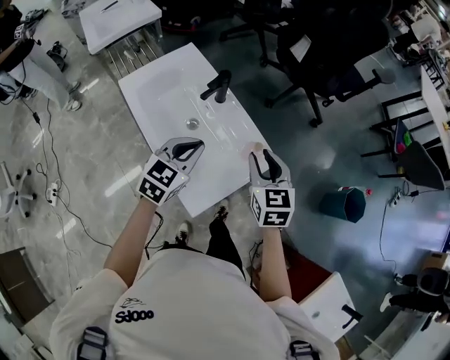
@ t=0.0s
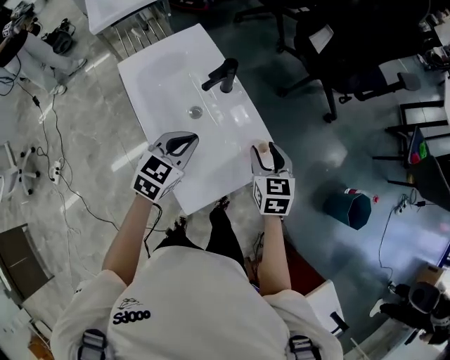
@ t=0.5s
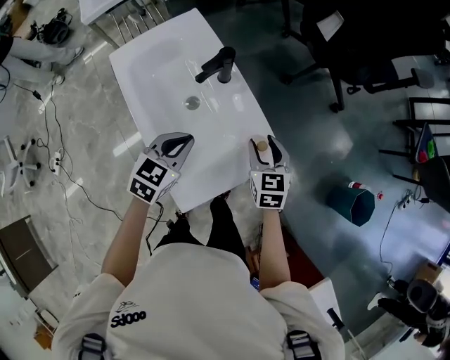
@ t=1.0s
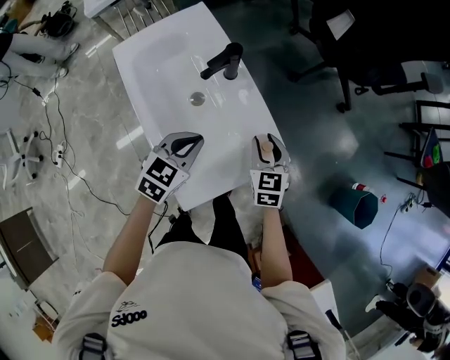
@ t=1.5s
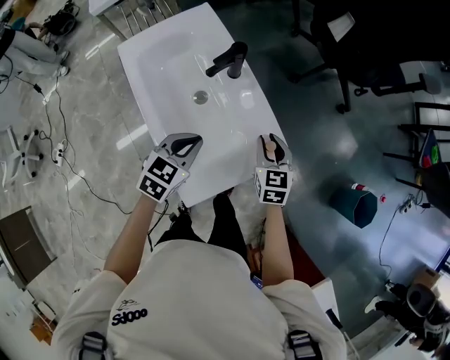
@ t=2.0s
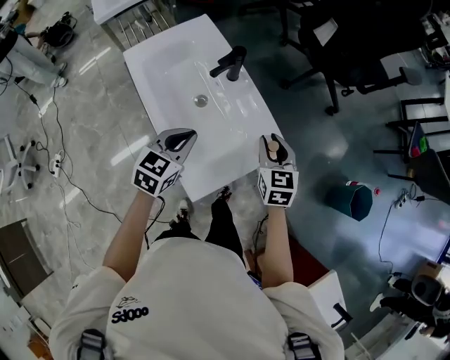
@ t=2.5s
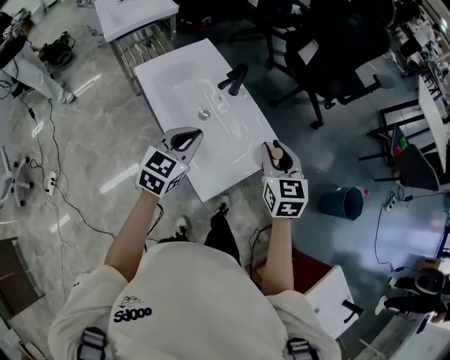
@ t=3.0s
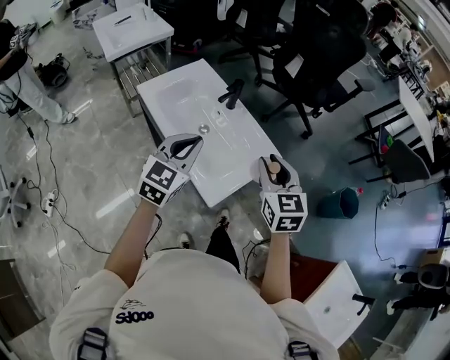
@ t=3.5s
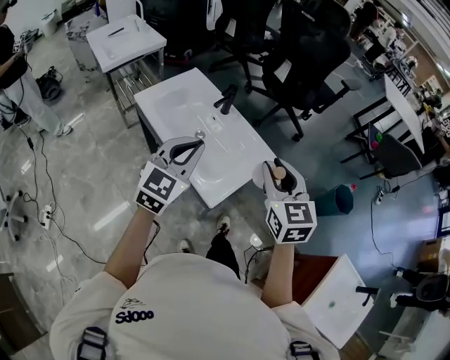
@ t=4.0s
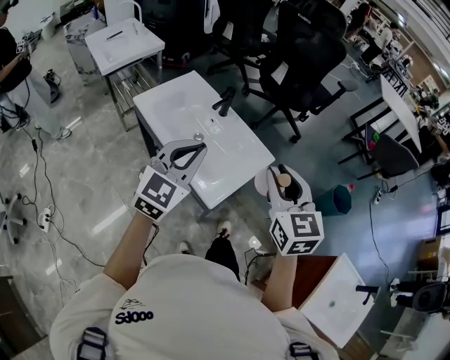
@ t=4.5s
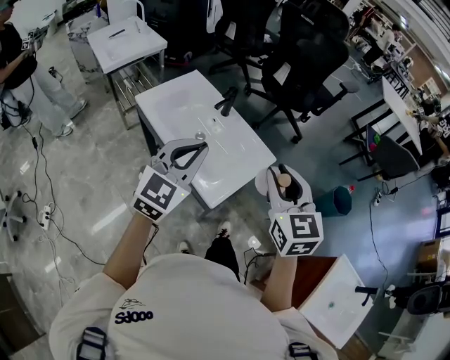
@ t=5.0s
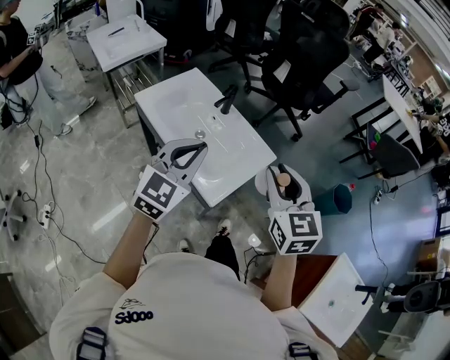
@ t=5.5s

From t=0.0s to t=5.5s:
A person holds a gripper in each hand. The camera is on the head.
From t=0.0s to t=2.0s: The left gripper moves downward, roughly 10 cm; the right gripper moves downward and forward, approximately 15 cm.
From t=2.0s to t=3.5s: Both grippers travel together upward and backward, about 25 cm. The left gripper turns by roughly 30 degrees.
From t=3.5s to t=5.5s: The two grippers go about 10 cm upward and backward.

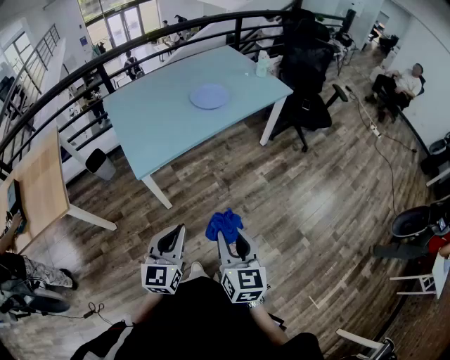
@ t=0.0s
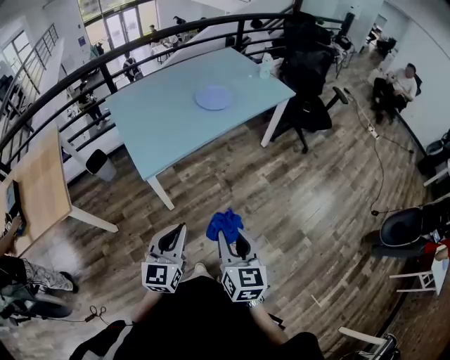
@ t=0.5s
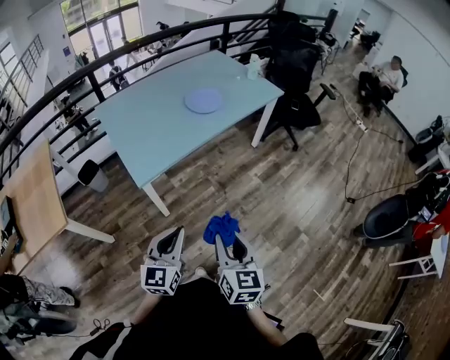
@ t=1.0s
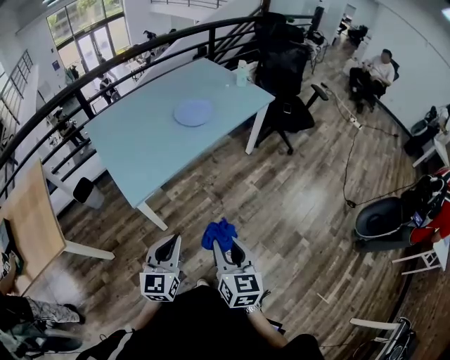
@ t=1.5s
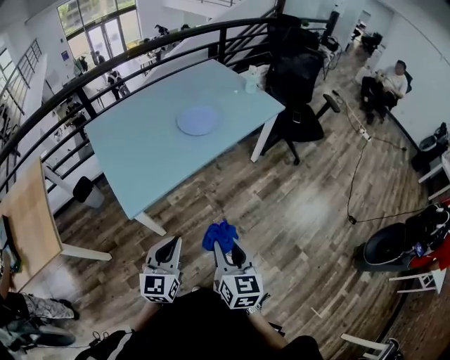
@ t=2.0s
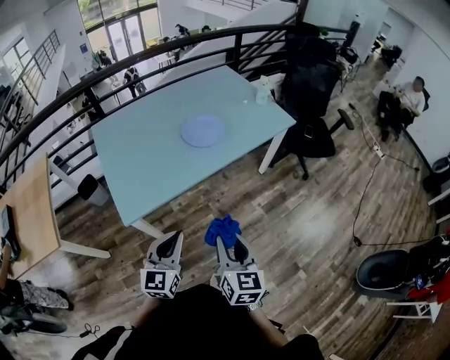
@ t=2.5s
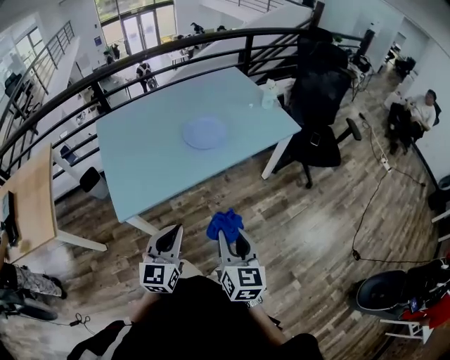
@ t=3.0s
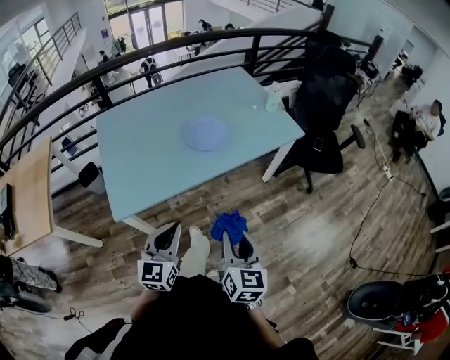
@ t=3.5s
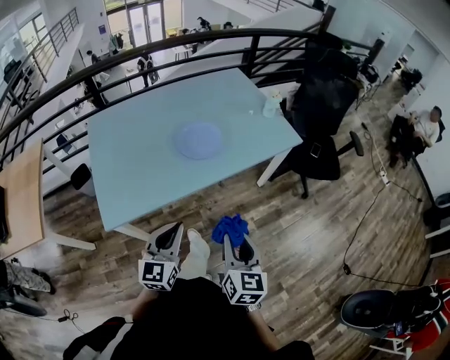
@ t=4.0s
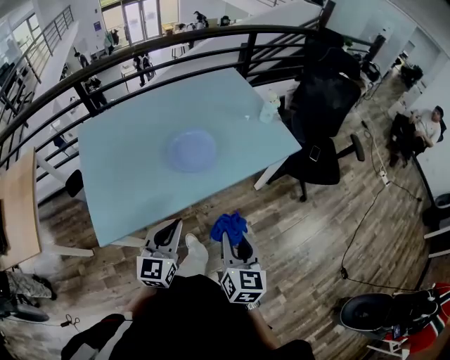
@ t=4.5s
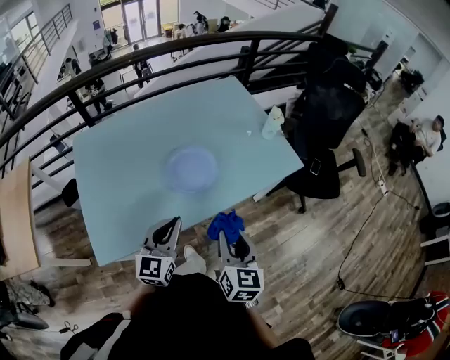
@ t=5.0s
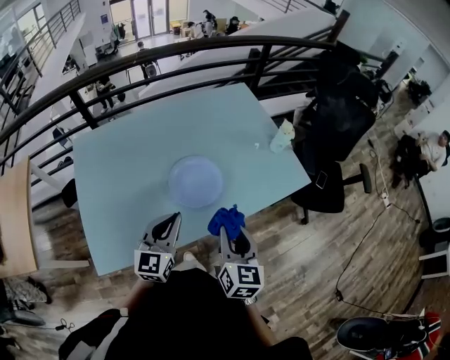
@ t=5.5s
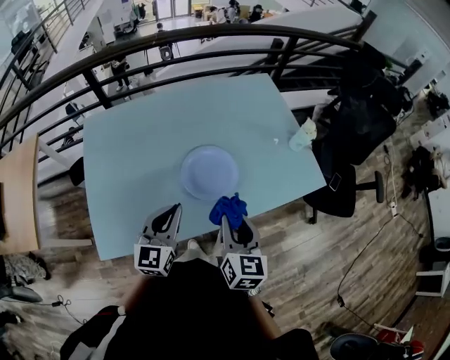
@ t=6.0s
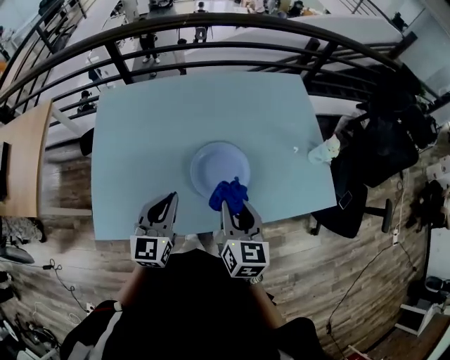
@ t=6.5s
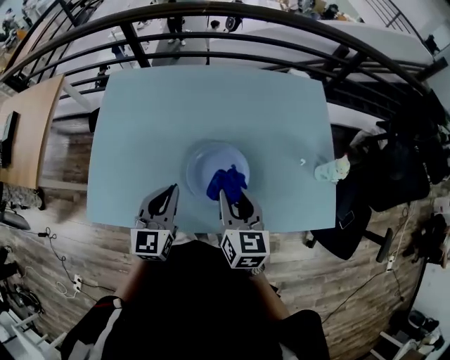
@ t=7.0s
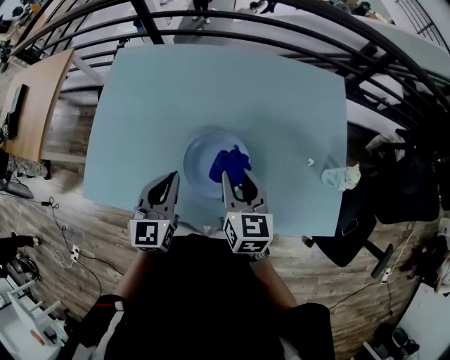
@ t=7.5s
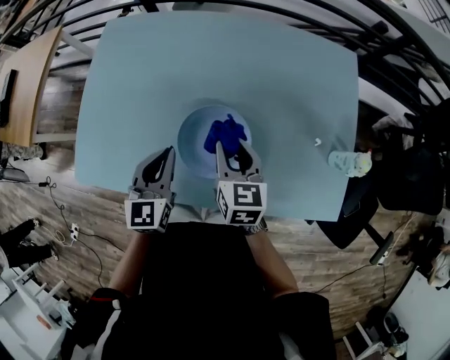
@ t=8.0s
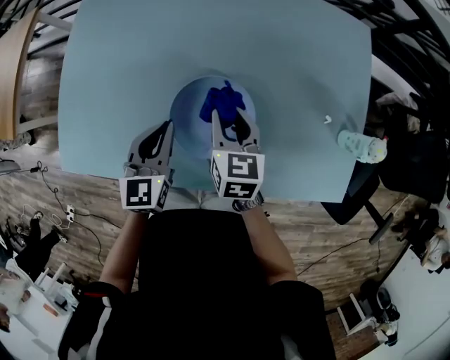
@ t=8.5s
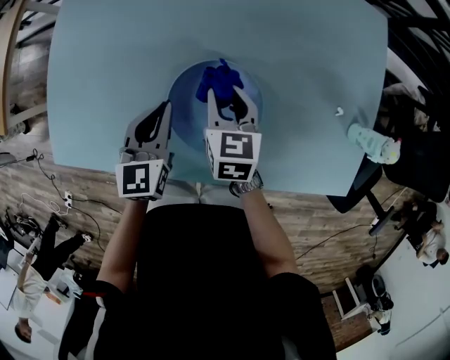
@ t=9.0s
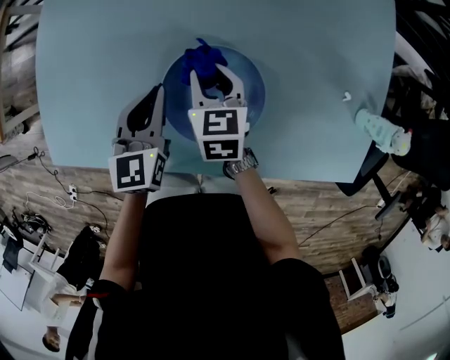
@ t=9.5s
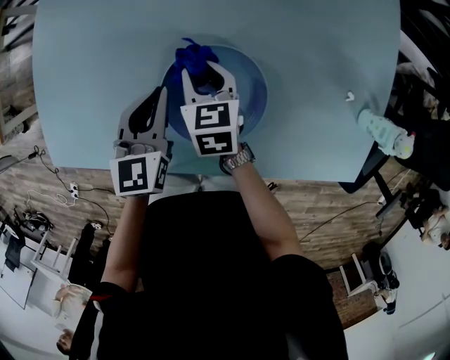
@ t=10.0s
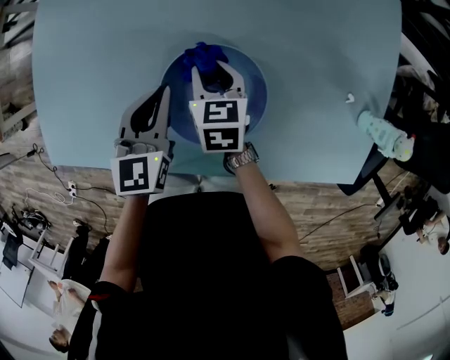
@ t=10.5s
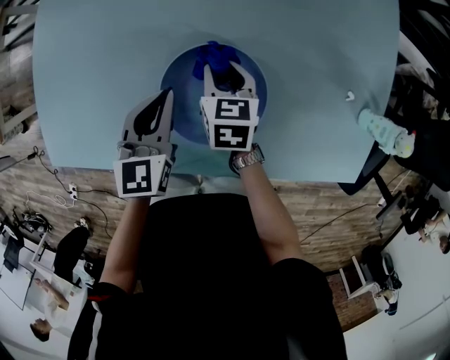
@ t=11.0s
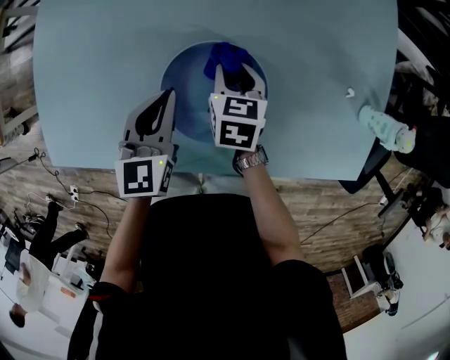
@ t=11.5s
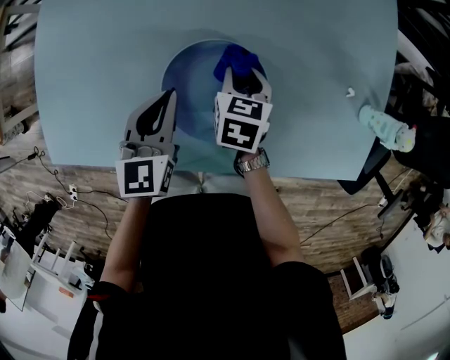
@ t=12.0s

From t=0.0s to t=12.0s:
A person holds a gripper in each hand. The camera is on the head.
From t=0.0s to t=2.0s: Both grippers move forward, some 15 cm.
From t=2.0s to t=4.0s: Both grippers travel together forward and to the right, some 25 cm.
From t=4.0s to t=6.0s: The grippers both shift forward by about 30 cm.
From t=6.0s to t=8.0s: The left gripper changes place by about 15 cm, and rotates approximately 30 degrees, while the right gripper moves some 25 cm, and turns by about 30 degrees.
From t=8.0s to t=10.0s: The right gripper moves downward, forward and to the left, approximately 20 cm; the left gripper shifts roughly 15 cm downward and forward.
From t=10.0s to t=12.0s: The right gripper is displaced to the right by some 10 cm, and changes its angle by roughly 20 degrees.

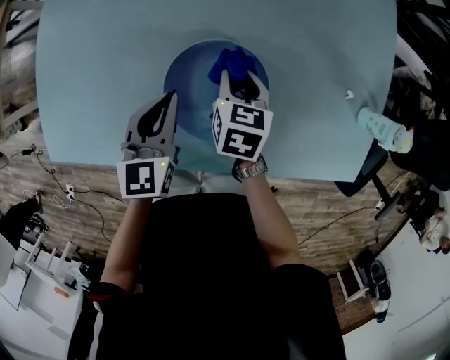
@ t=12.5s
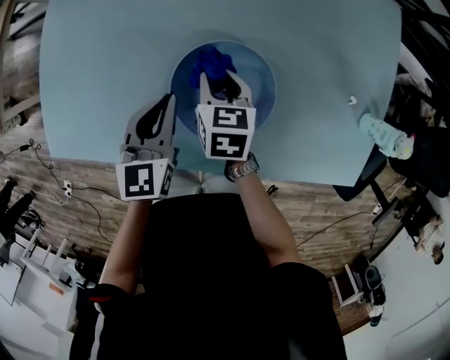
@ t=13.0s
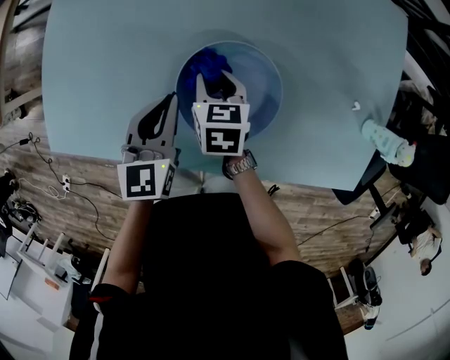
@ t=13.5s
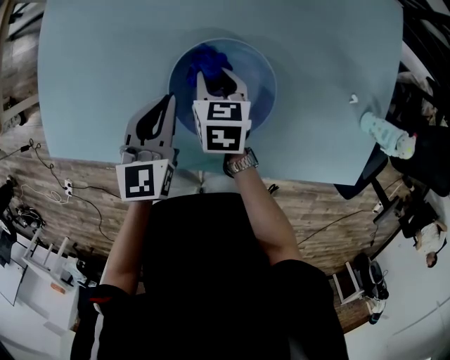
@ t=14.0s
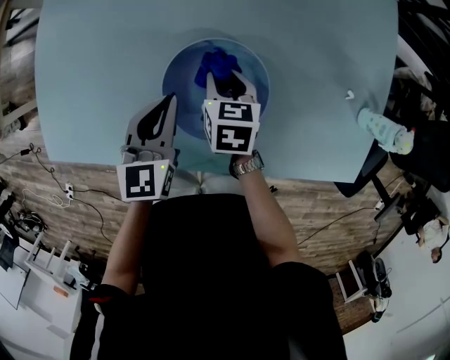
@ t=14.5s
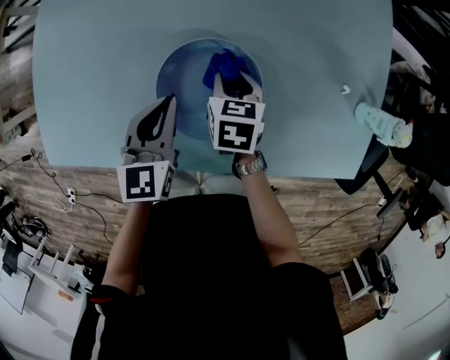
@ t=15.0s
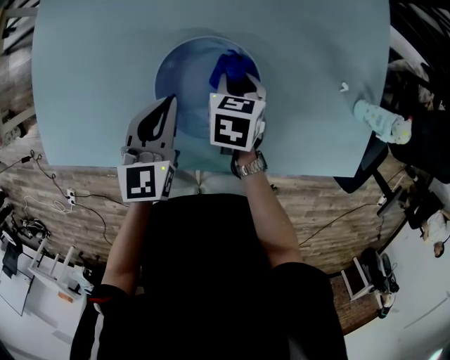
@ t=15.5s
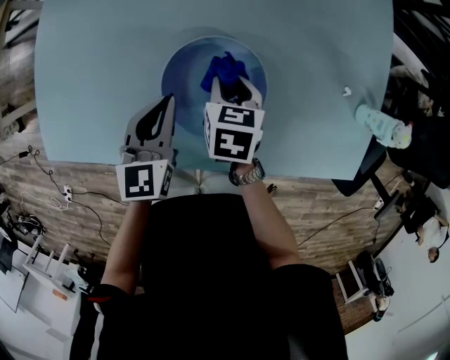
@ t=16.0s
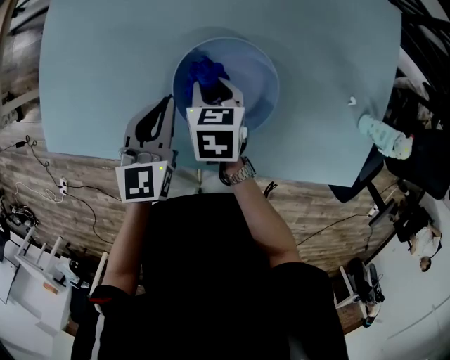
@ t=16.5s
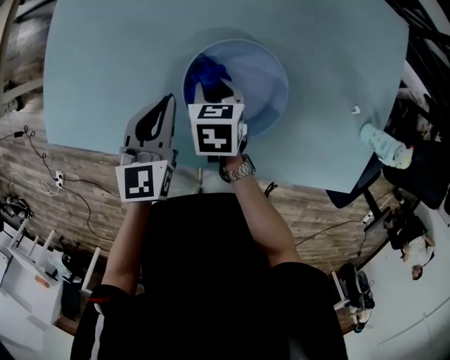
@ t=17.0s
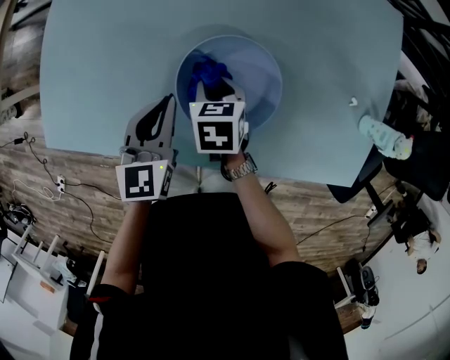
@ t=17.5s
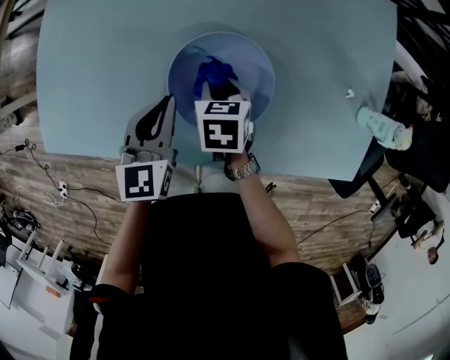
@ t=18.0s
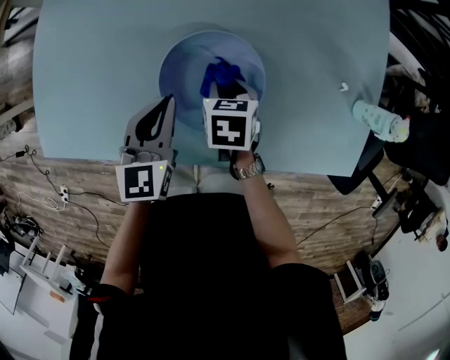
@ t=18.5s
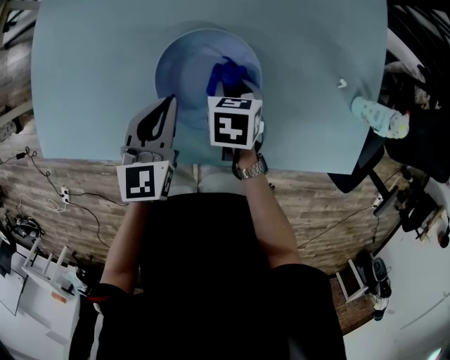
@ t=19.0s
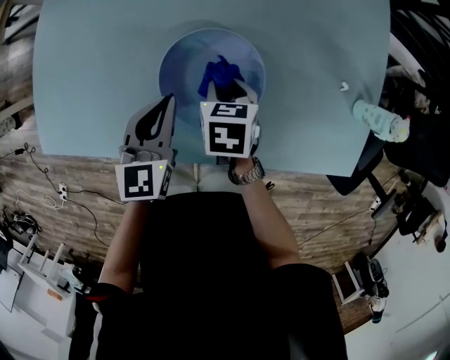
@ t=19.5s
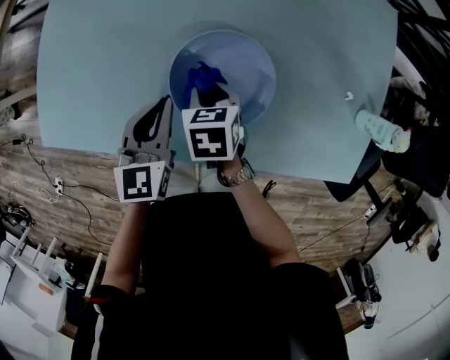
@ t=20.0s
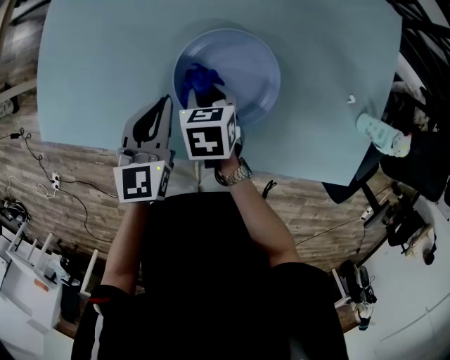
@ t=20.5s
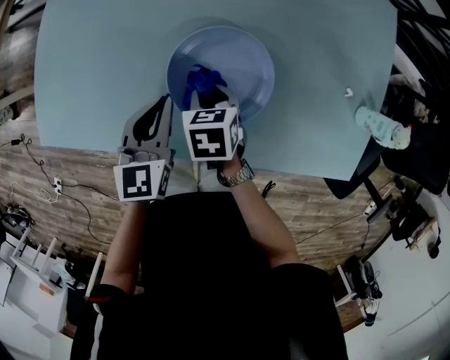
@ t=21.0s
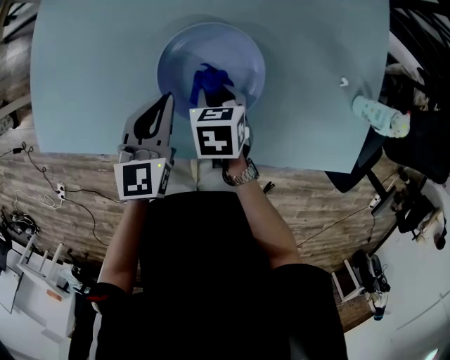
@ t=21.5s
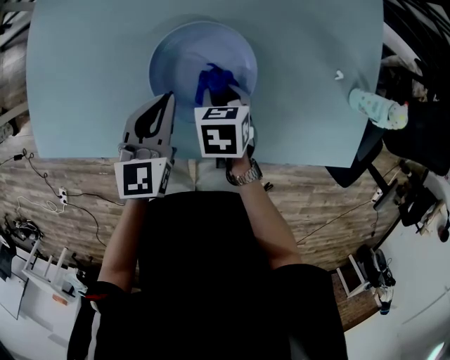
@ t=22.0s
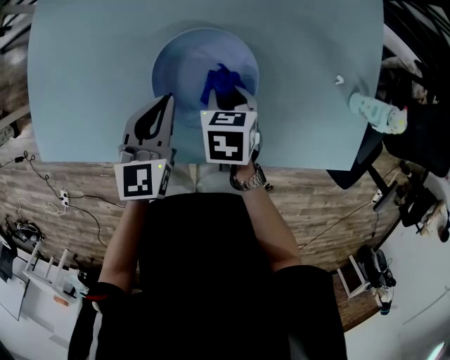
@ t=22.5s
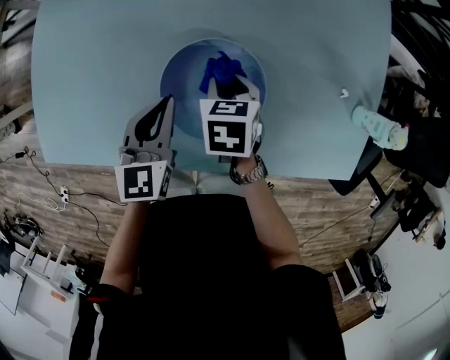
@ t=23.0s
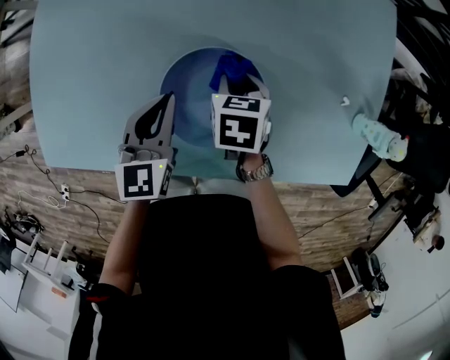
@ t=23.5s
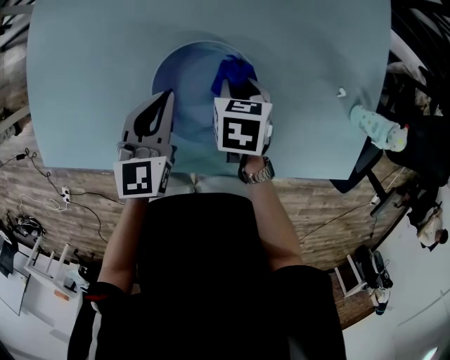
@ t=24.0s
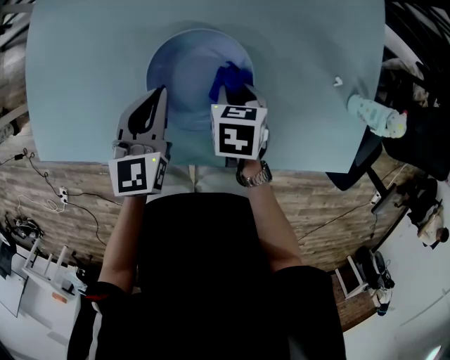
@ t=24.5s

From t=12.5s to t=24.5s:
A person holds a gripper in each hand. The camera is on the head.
From t=14.5s to t=16.5s: The right gripper goes some 5 cm to the left.
From t=16.5s to t=18.5s: The right gripper is displaced to the right by roughly 5 cm.
From t=18.5s to t=20.5s: The right gripper moves to the left, roughly 10 cm.
From t=20.5s to t=22.5s: The right gripper heads to the right, covering about 10 cm. Meanwhile the left gripper shifts roughly 5 cm to the right.
From t=22.5s to t=24.5s: The right gripper reaches roughly 10 cm forward, then returns.
